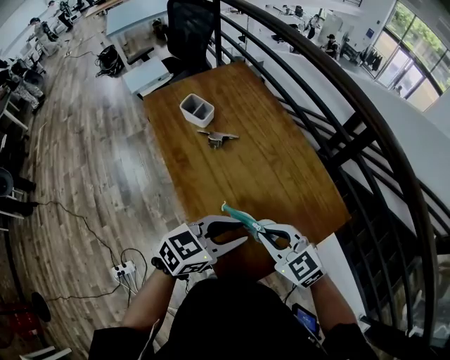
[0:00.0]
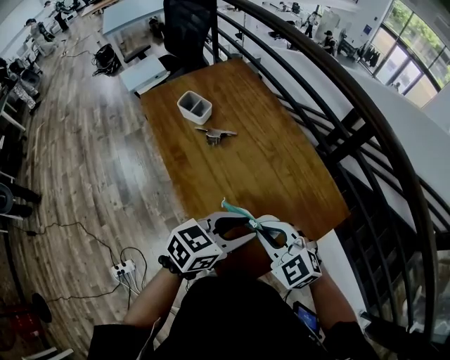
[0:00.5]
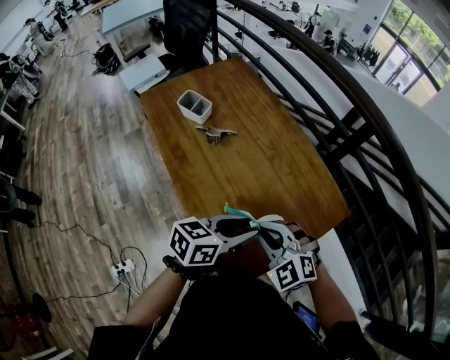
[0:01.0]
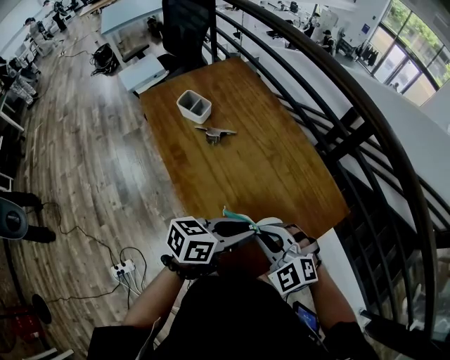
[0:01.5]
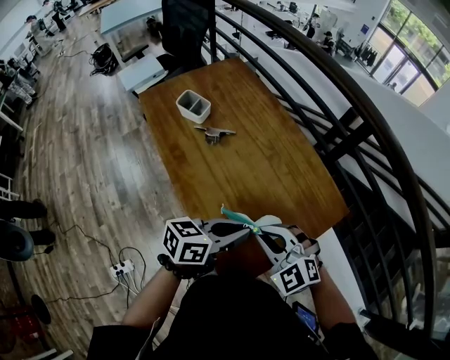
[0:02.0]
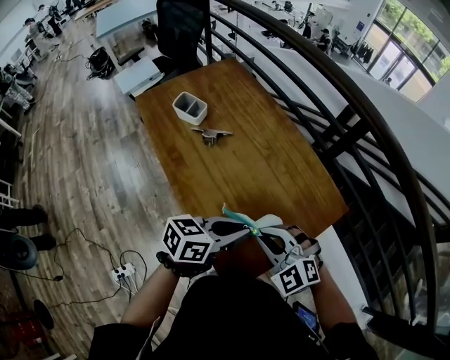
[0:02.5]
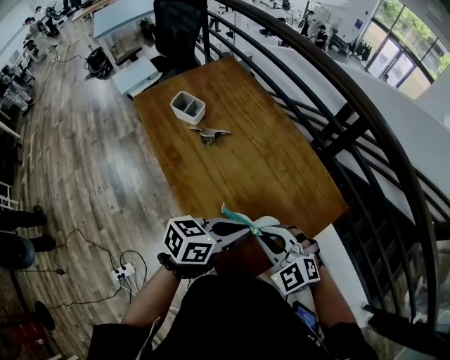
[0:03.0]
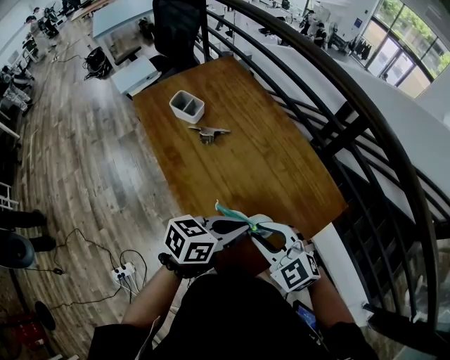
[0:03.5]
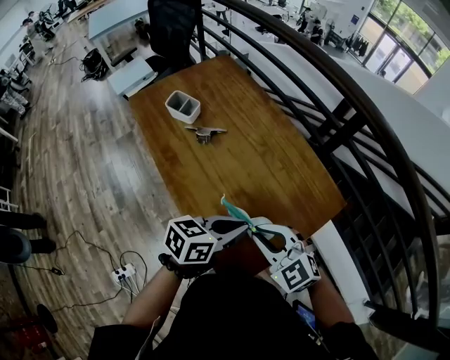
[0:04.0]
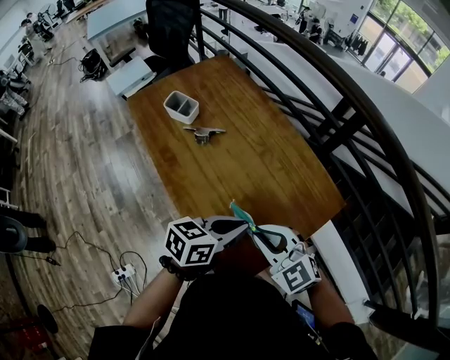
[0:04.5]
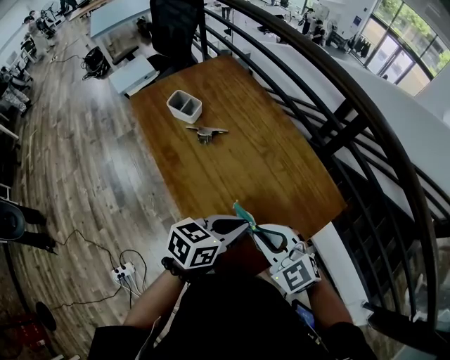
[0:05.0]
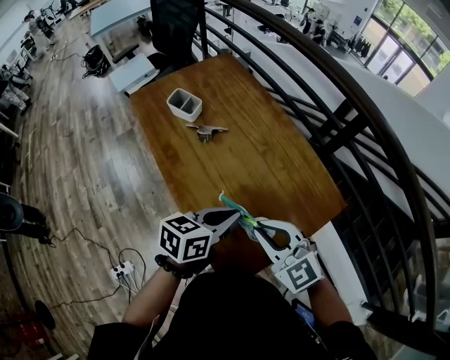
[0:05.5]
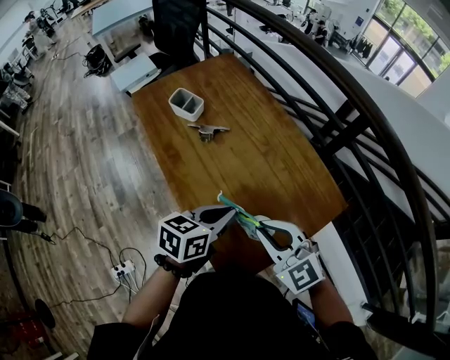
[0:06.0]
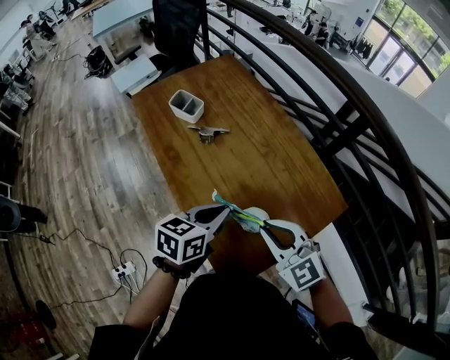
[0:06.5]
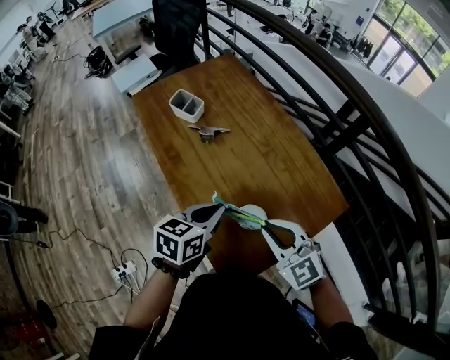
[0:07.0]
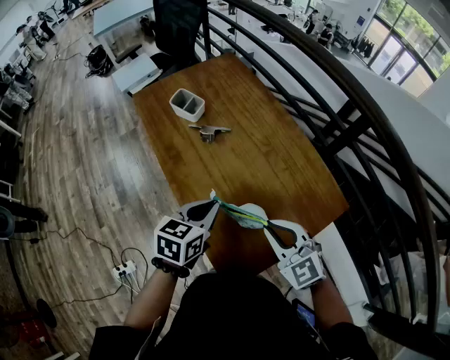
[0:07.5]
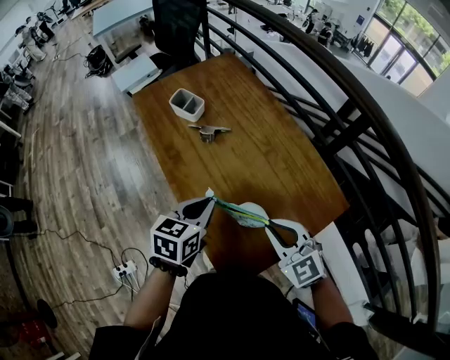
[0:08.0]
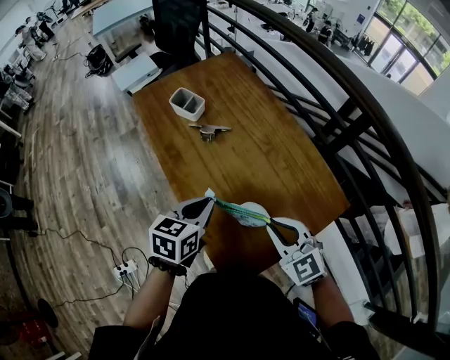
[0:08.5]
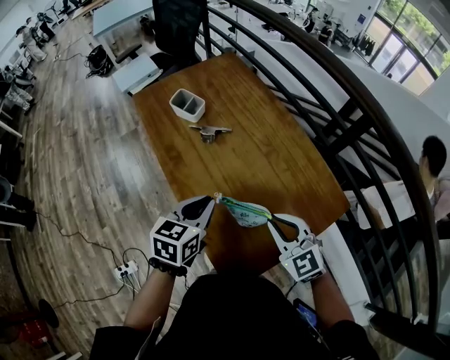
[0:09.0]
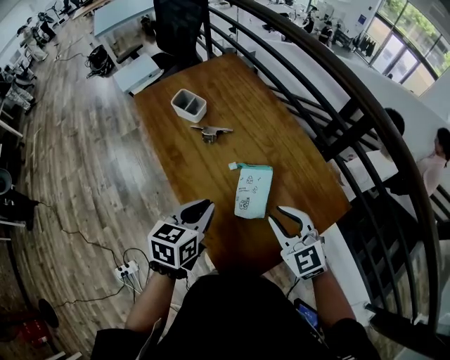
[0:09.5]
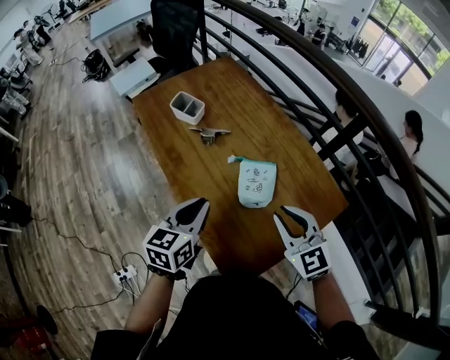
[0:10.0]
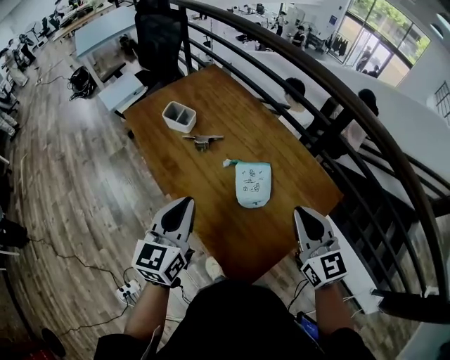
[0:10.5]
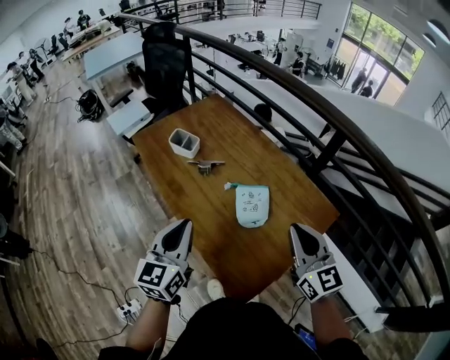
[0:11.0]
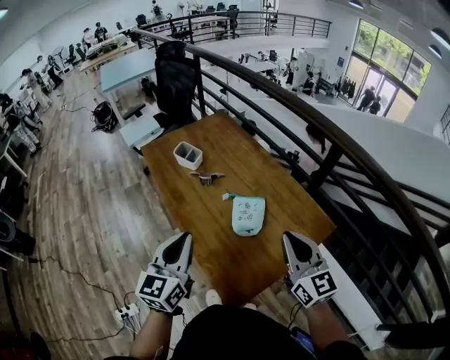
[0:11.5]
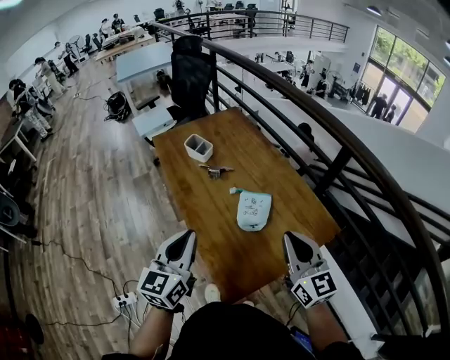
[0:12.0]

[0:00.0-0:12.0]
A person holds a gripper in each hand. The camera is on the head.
0.0 to 2.0 s: The right gripper turns by about 20 degrees, while the left gripper rotates roughly 30 degrees, and closes its fingers.
2.0 to 4.0 s: The grippers move only a little.
4.0 to 6.0 s: The left gripper shifts by some 5 cm.
6.0 to 8.0 s: The left gripper travels to the left by about 5 cm.
8.0 to 10.0 s: There are only small adjustments of the grippers.
10.0 to 12.0 s: Both grippers travel together upward and backward, approximately 15 cm. The left gripper rotates approximately 20 degrees. Meanwhile the right gripper changes its angle by about 30 degrees.

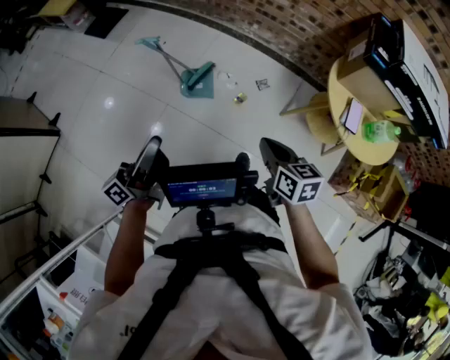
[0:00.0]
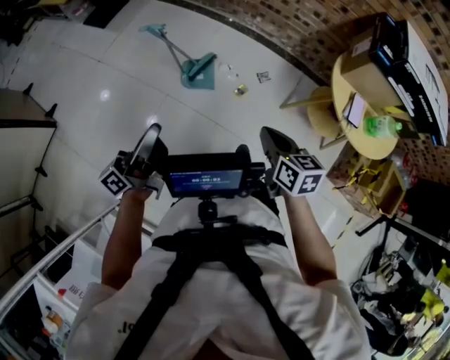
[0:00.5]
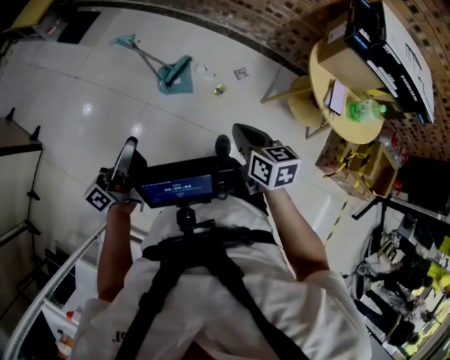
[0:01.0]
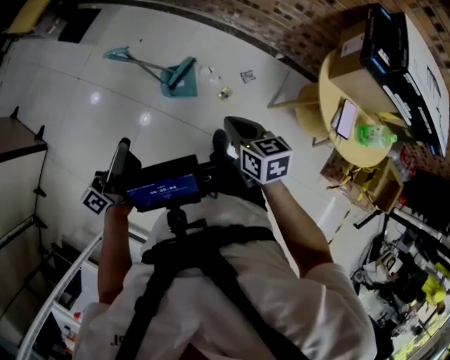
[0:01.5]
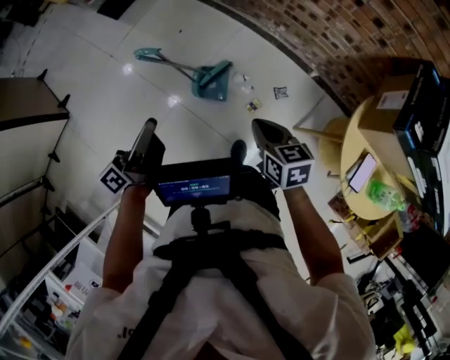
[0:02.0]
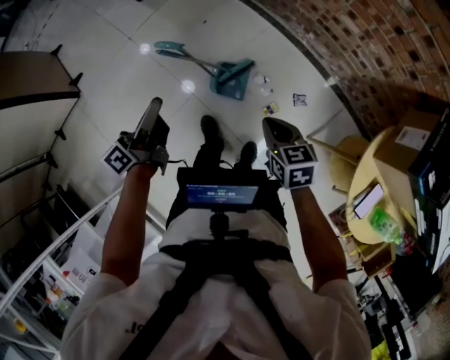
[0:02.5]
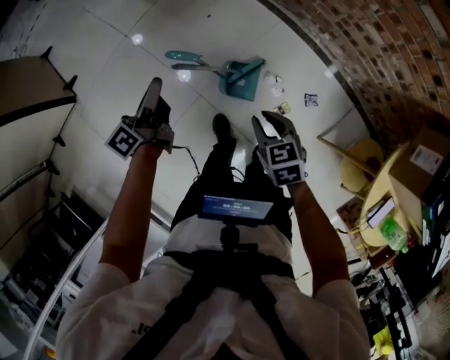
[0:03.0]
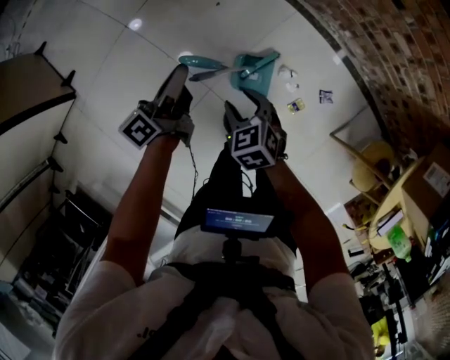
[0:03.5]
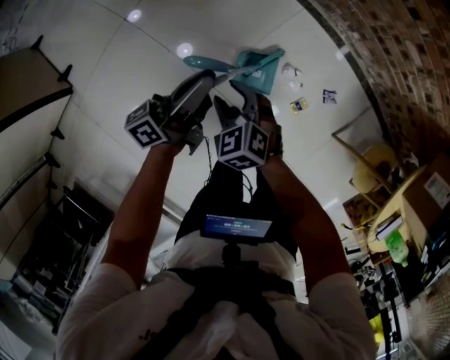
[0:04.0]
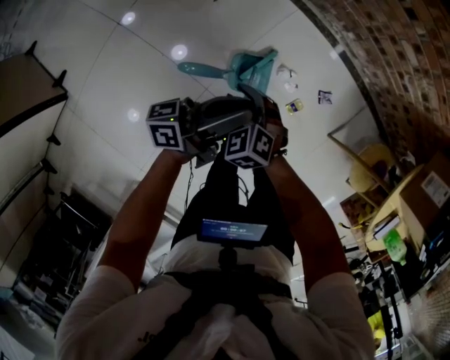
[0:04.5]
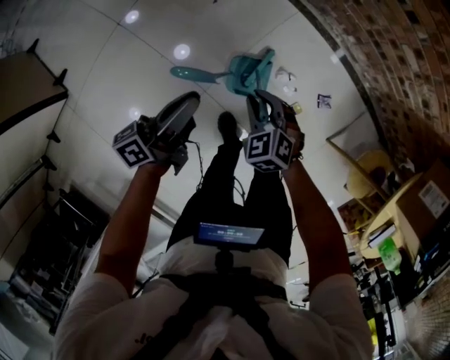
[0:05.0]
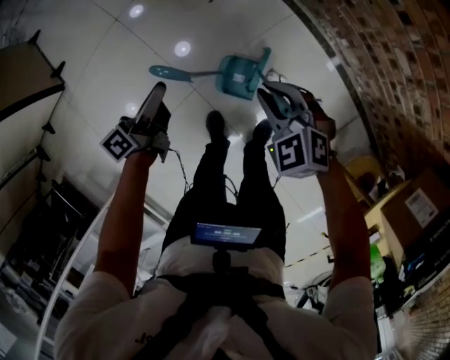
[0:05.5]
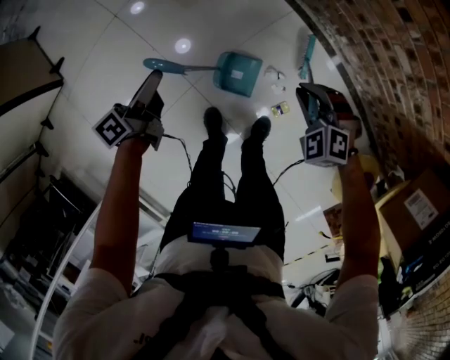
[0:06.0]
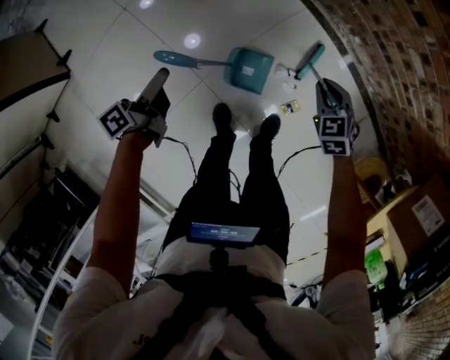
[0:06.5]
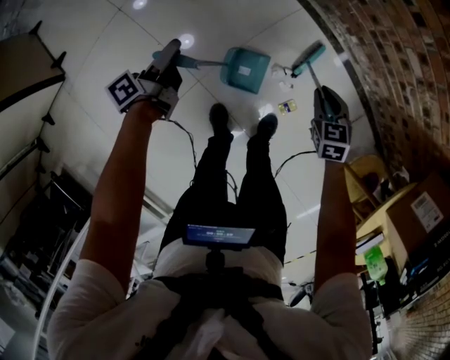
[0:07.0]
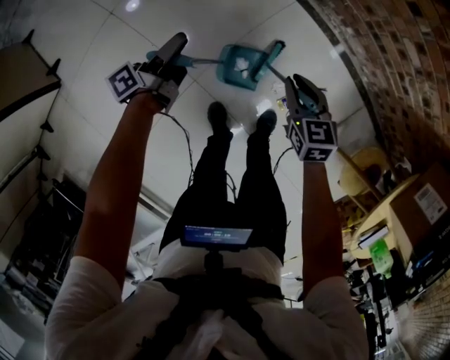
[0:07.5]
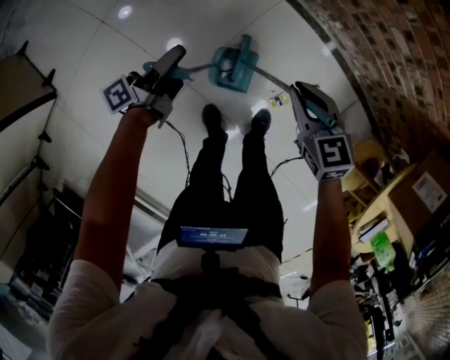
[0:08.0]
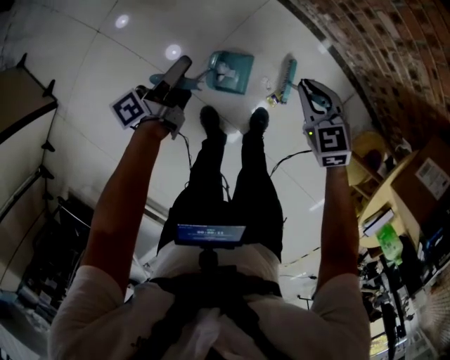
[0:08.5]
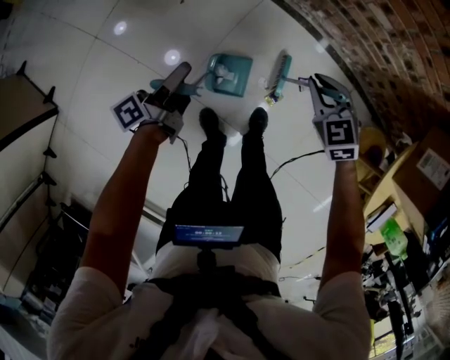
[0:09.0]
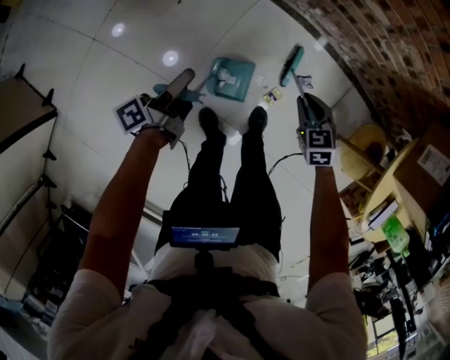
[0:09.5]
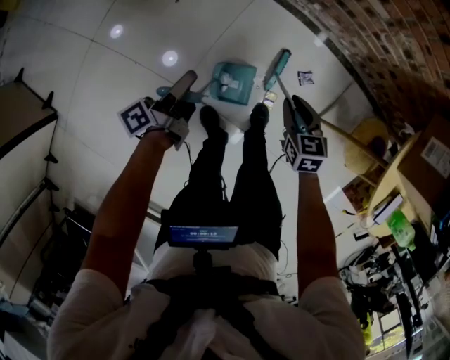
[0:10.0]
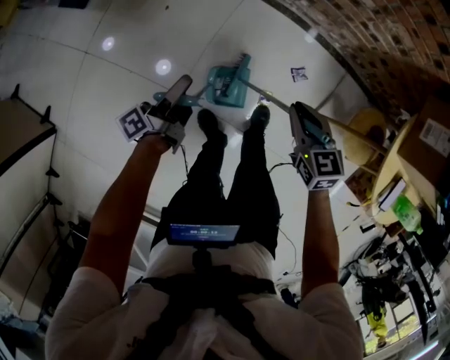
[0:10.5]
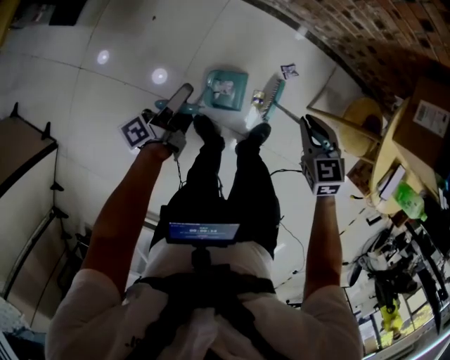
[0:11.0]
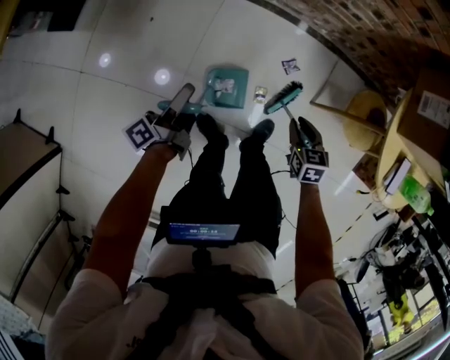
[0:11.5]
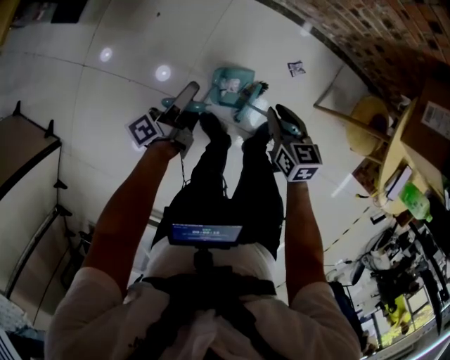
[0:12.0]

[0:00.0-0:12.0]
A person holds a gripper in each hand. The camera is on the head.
0.0 to 2.0 s: Both grippers travel together forward, about 25 cm.
2.0 to 4.0 s: The left gripper travels forward and downward by approximately 30 cm; the right gripper heads to the left, forward and downward, covering approximately 40 cm, rolls counterclockwise, seen from behind, by about 40 degrees, and opens up.
4.0 to 6.0 s: The right gripper goes up and down, roughly 10 cm each way, reversing 2 times, swivels roughly 40 degrees, and closes. The left gripper shifts approximately 10 cm downward, swivels roughly 30 degrees, and opens up.
6.0 to 8.0 s: The right gripper shifts approximately 5 cm upward, and rotates around the line of its fingers by roughly 50 degrees, clockwise from behind. The left gripper is displaced to the right and forward by some 10 cm, turns by roughly 20 degrees, and closes up.
8.0 to 10.0 s: The right gripper shifts approximately 15 cm downward, to the right and backward, and swivels approximately 30 degrees, while the left gripper heads to the right and backward, covering about 10 cm.
10.0 to 12.0 s: The right gripper moves backward, about 5 cm, and goes to the right and returns, approximately 10 cm each way.

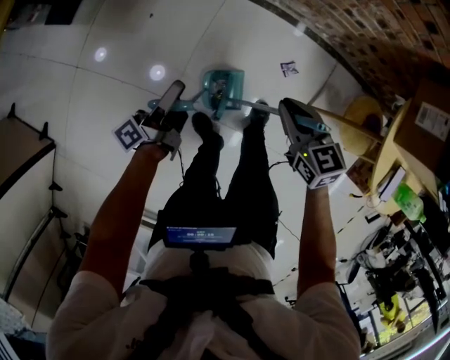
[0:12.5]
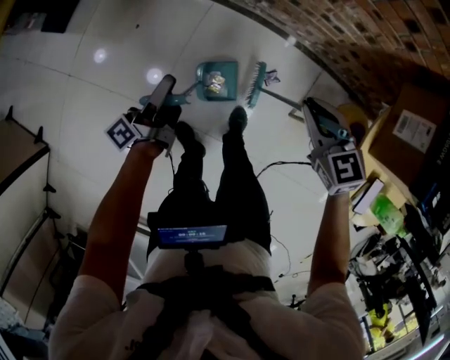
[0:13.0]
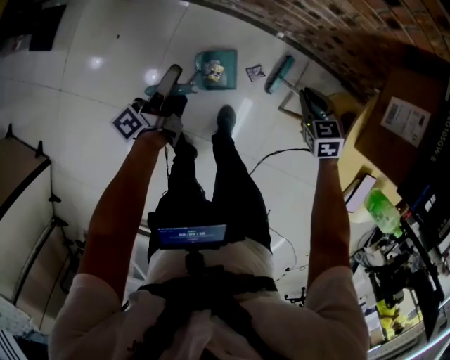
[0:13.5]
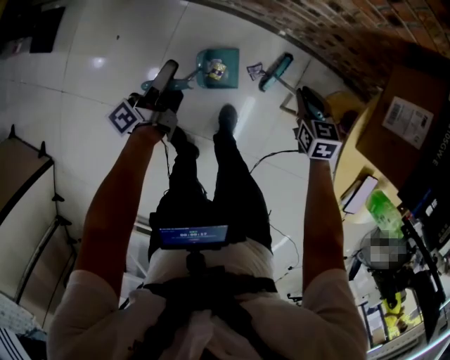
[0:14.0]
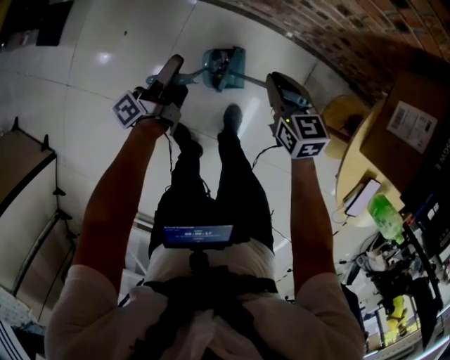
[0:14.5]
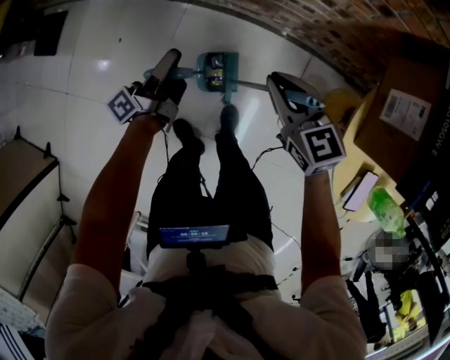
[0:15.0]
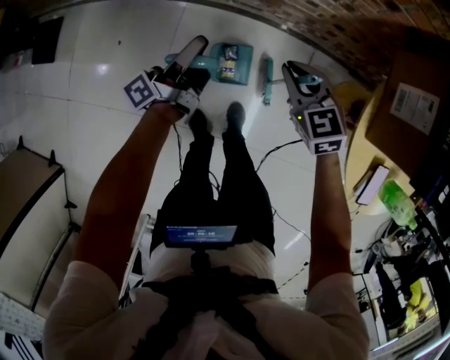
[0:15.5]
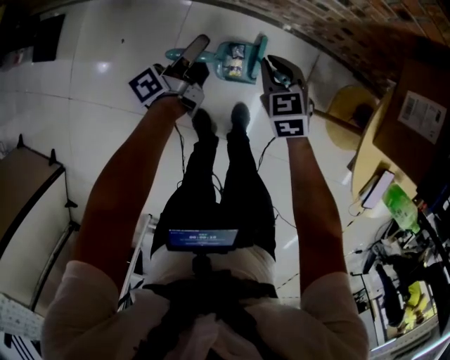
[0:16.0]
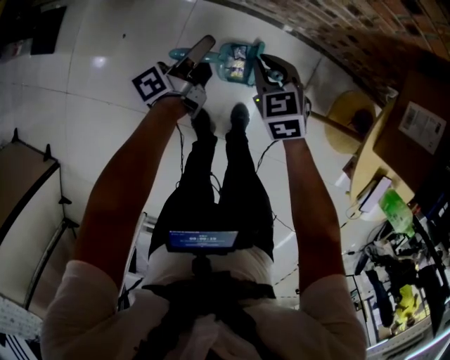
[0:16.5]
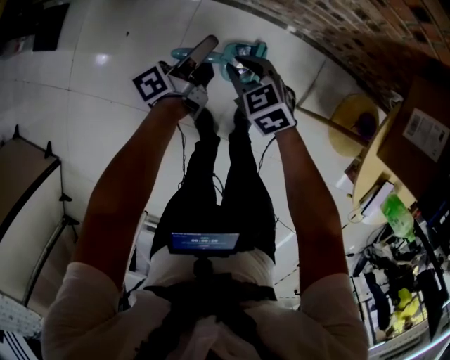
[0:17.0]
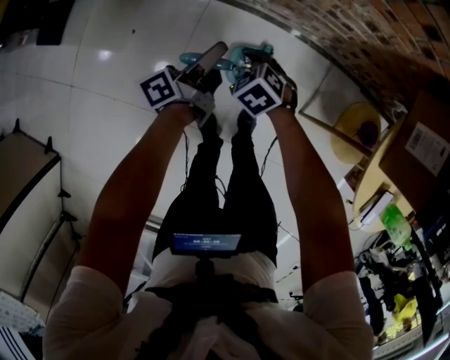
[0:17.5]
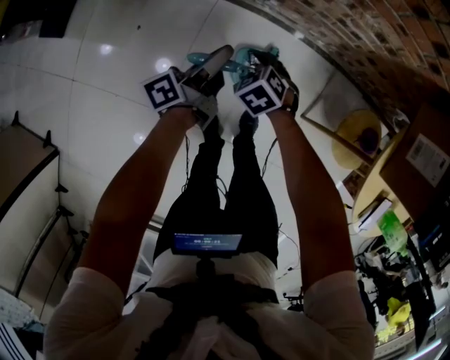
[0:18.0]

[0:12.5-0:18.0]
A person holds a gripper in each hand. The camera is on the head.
12.5 to 14.5 s: The grippers both shift to the right and forward by some 25 cm.
14.5 to 16.0 s: The right gripper goes upward and returns, approximately 10 cm each way, and swivels about 20 degrees; the left gripper shifts about 5 cm forward.
16.0 to 18.0 s: The right gripper travels to the left and downward by approximately 15 cm, rotates approximately 30 degrees, and opens its fingers.
